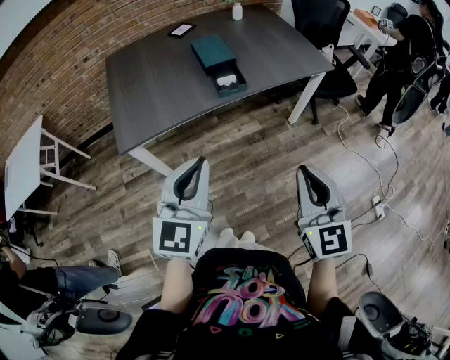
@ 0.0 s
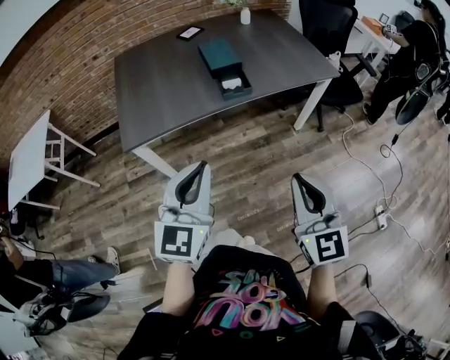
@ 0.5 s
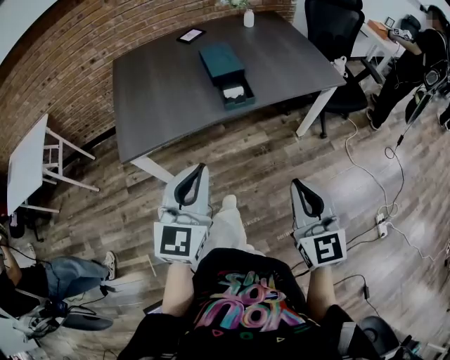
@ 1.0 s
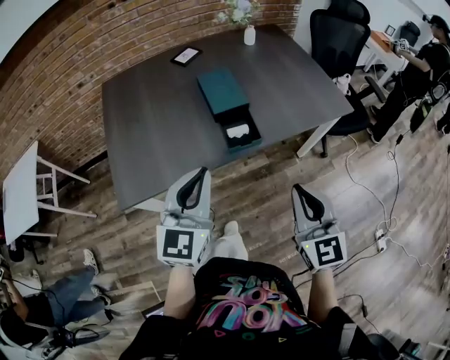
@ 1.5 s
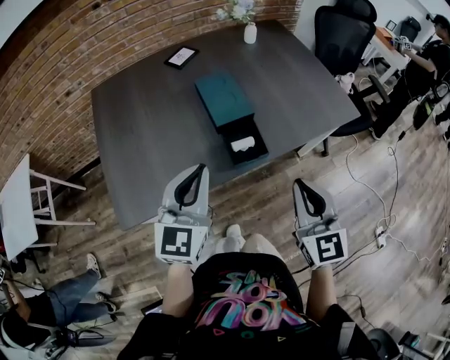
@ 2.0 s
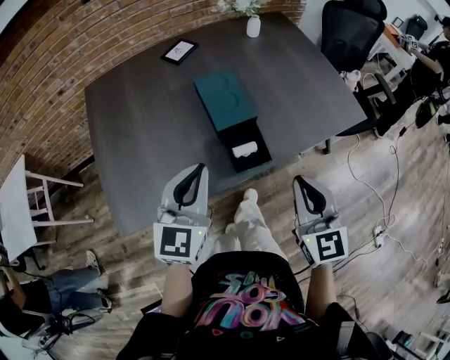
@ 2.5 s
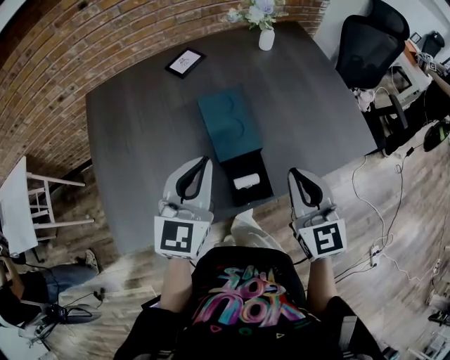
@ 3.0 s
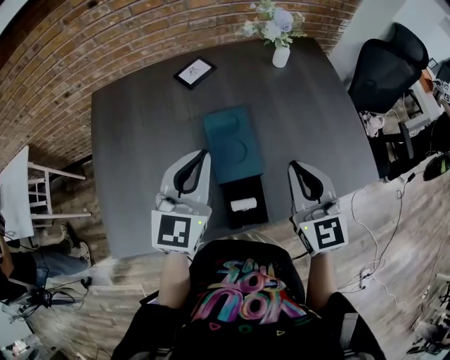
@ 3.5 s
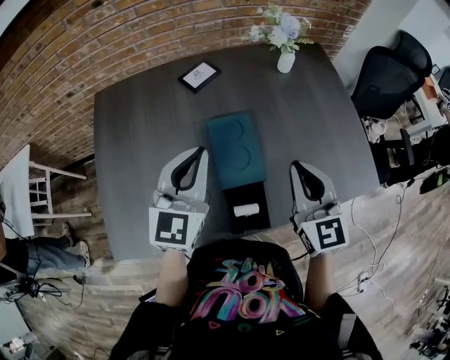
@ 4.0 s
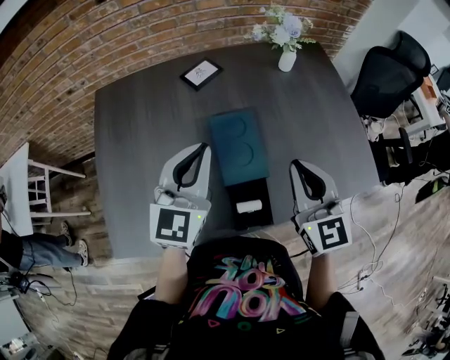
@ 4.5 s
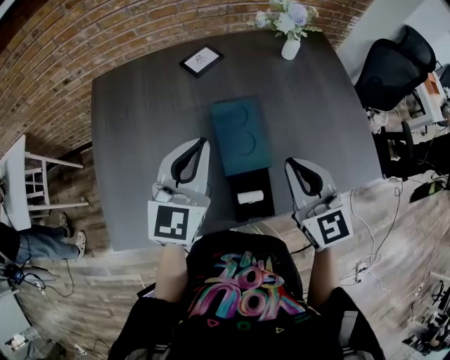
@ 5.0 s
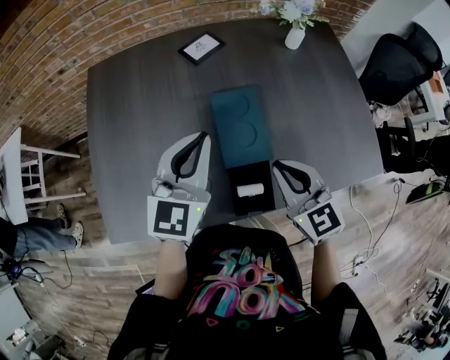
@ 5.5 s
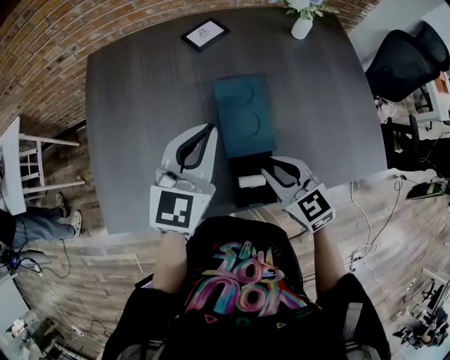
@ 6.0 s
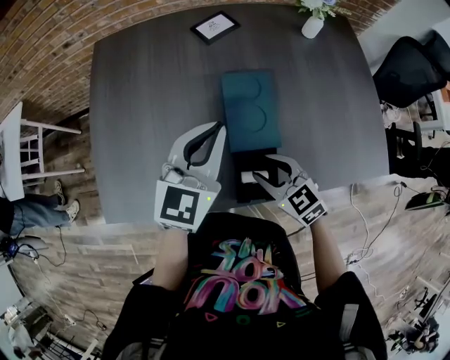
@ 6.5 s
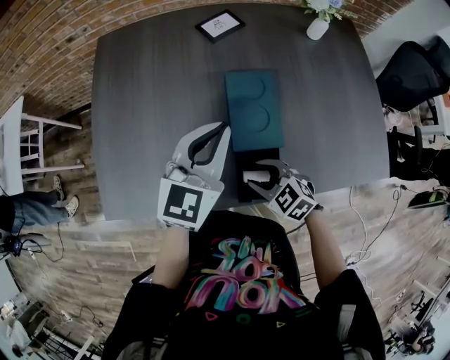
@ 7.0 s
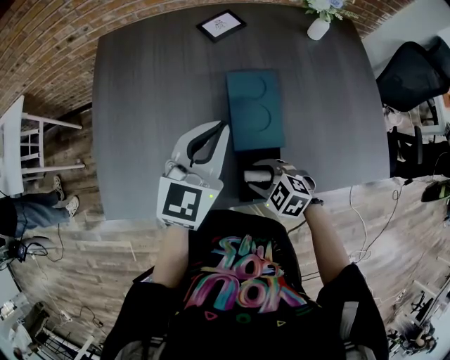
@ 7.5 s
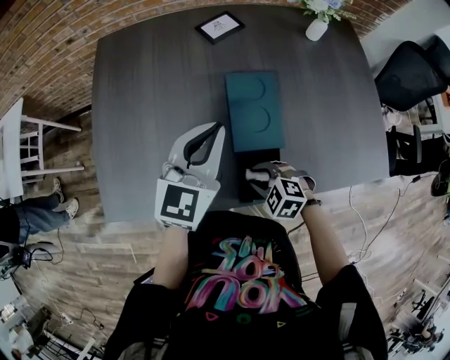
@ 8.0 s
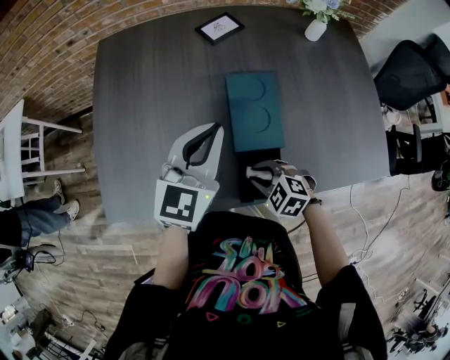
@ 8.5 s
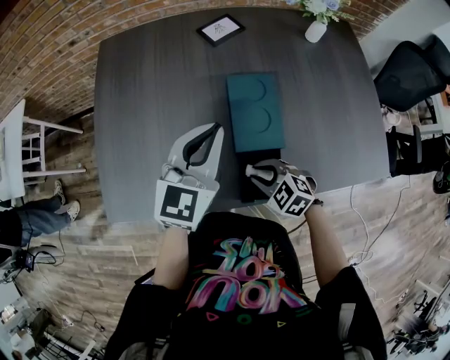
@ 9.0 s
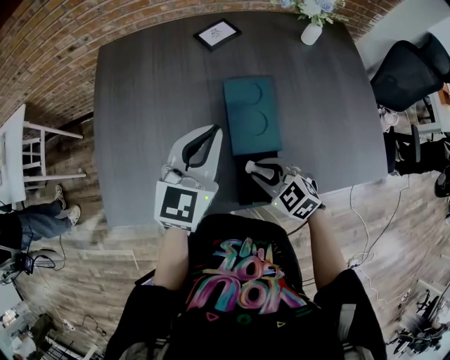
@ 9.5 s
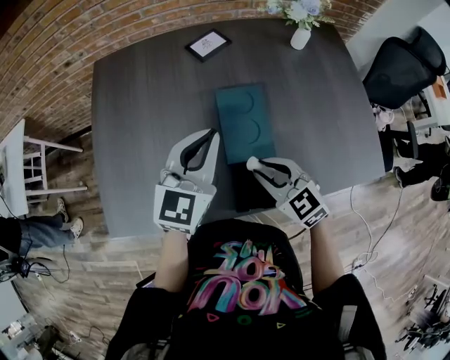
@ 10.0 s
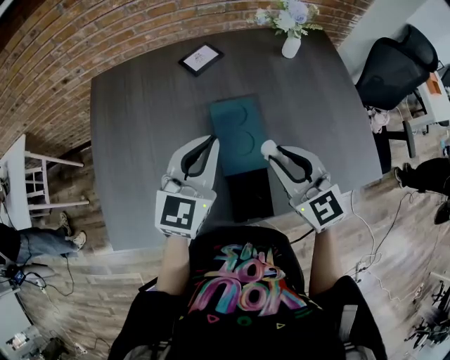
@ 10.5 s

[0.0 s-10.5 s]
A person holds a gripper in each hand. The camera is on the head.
0.0 to 2.0 s: The grippers both shift forward by some 30 cm.
2.0 to 4.0 s: The grippers both shift forward by roughly 25 cm.
4.0 to 6.5 s: The right gripper travels downward and to the left by about 20 cm, turns by approximately 40 degrees, and opens its fingers. The left gripper heads downward, covering some 5 cm.
6.5 to 8.5 s: The right gripper goes roughly 10 cm downward, and turns by roughly 30 degrees.
8.5 to 10.5 s: The right gripper is displaced upward and to the right by roughly 25 cm, and angles its fingers upward, by about 40 degrees.

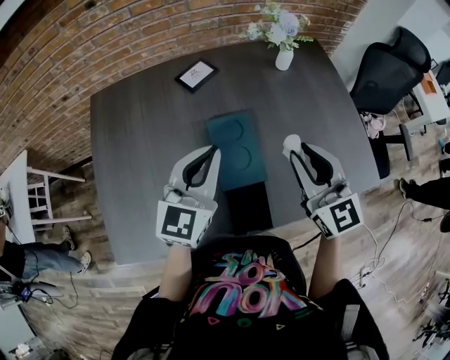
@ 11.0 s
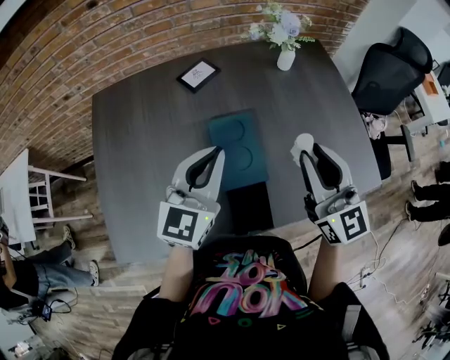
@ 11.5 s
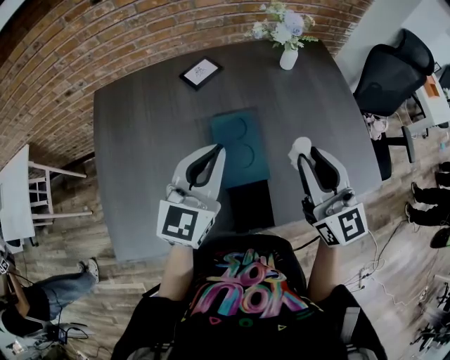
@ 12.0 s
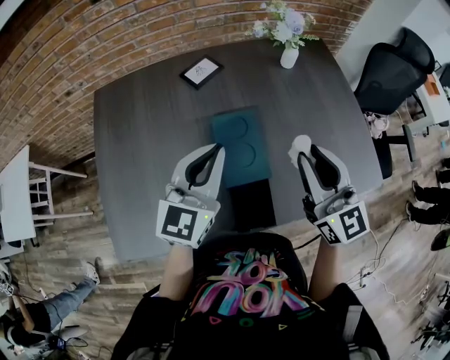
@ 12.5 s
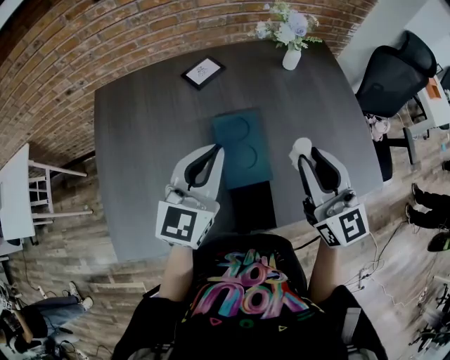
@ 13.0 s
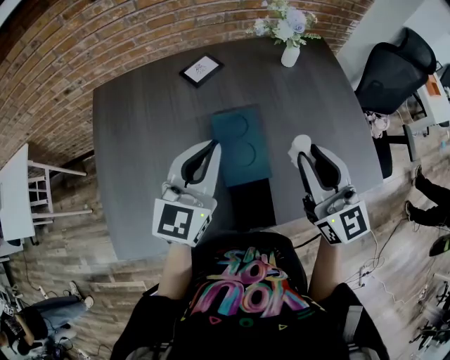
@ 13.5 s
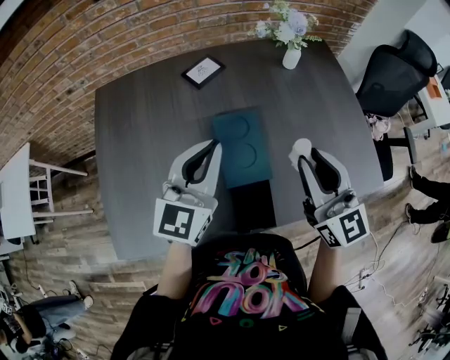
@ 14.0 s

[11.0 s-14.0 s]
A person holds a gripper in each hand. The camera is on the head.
11.0 to 12.5 s: The grippers make only small movements.
12.5 to 14.0 s: The two grippers keep their place.

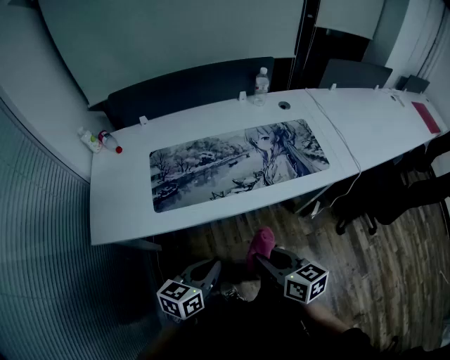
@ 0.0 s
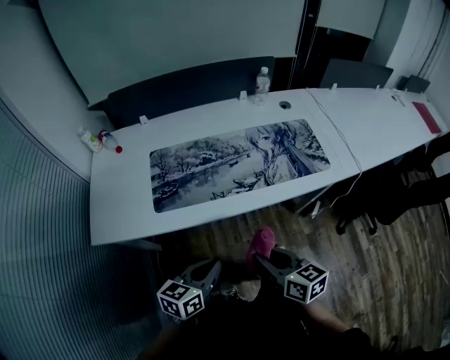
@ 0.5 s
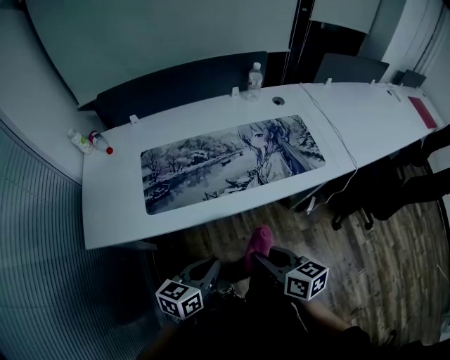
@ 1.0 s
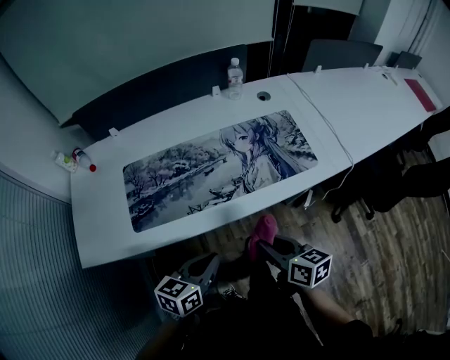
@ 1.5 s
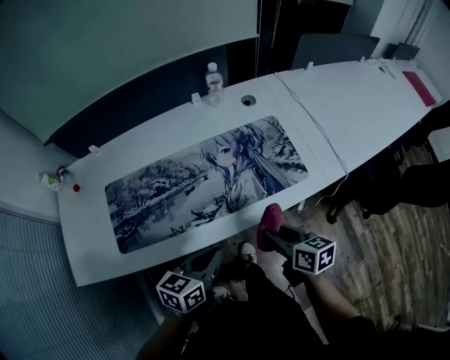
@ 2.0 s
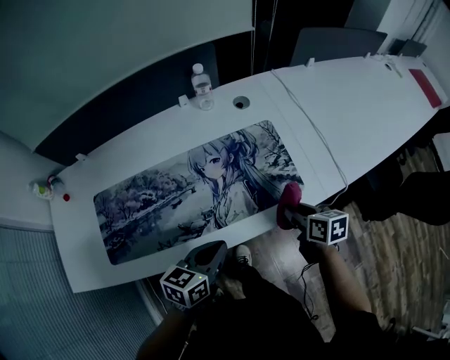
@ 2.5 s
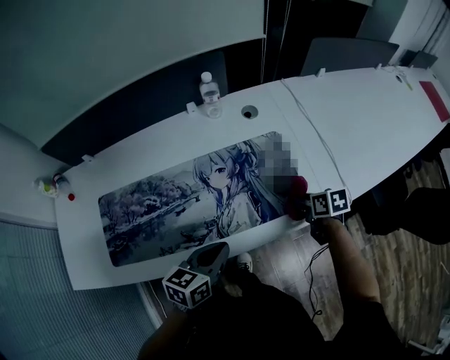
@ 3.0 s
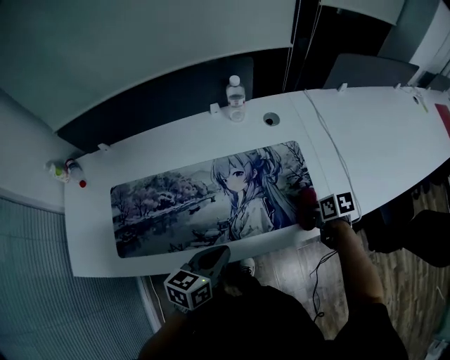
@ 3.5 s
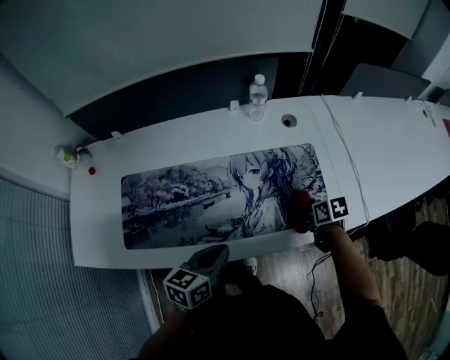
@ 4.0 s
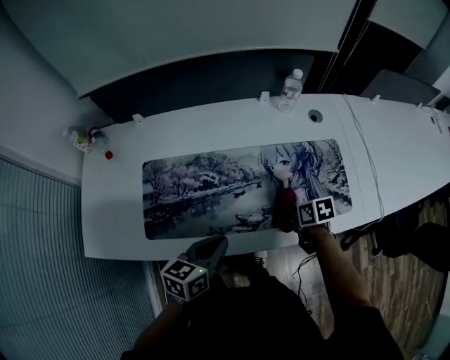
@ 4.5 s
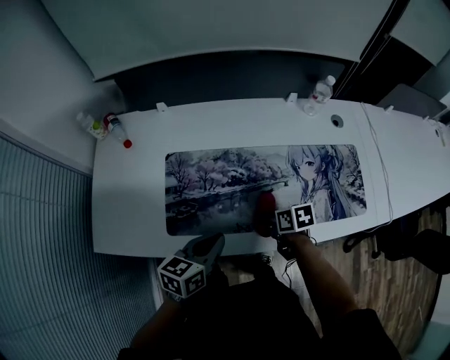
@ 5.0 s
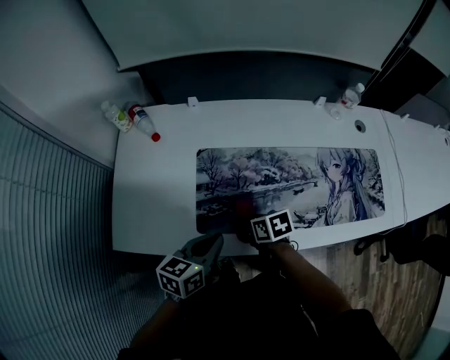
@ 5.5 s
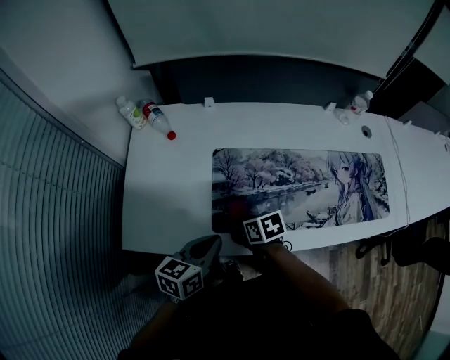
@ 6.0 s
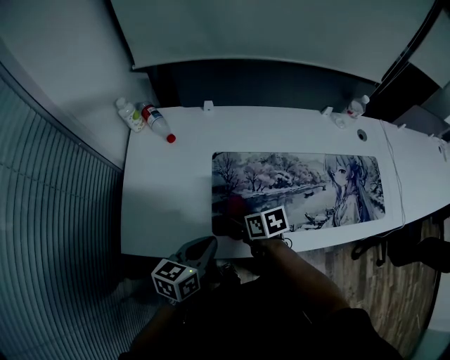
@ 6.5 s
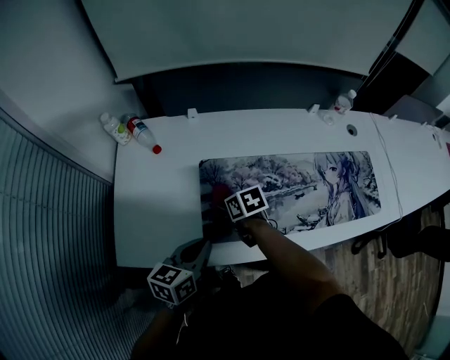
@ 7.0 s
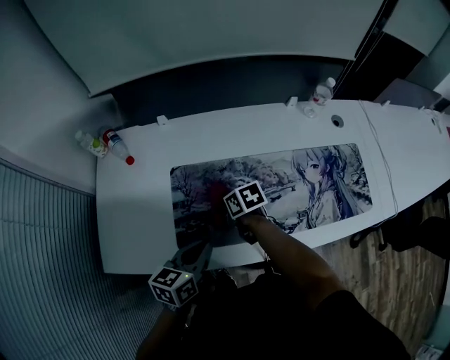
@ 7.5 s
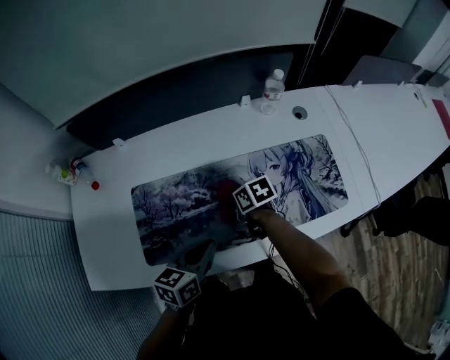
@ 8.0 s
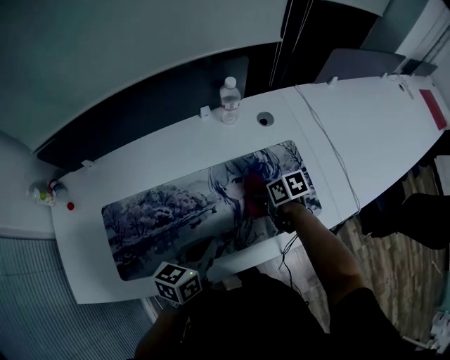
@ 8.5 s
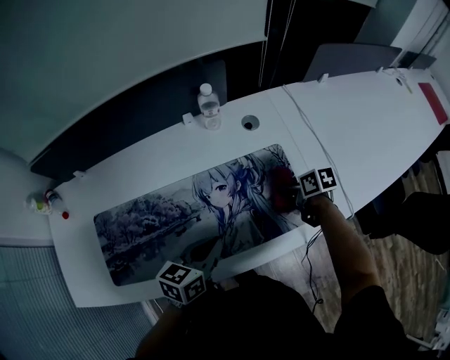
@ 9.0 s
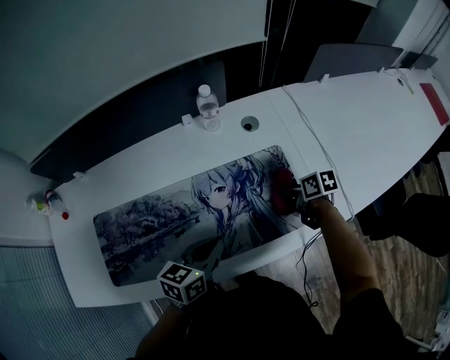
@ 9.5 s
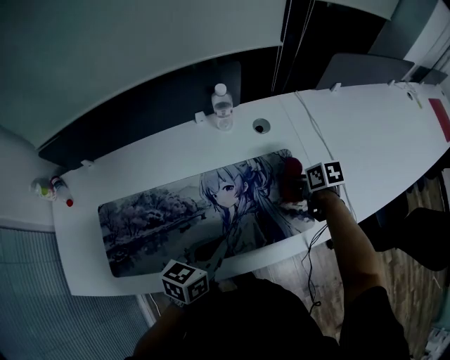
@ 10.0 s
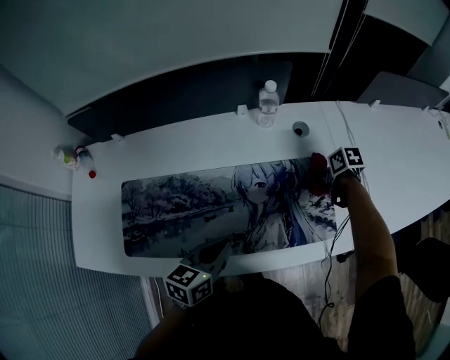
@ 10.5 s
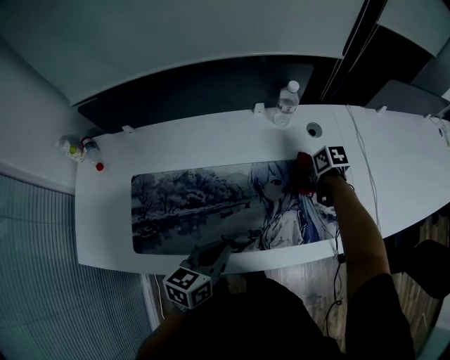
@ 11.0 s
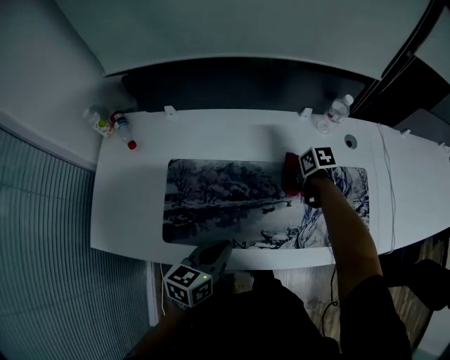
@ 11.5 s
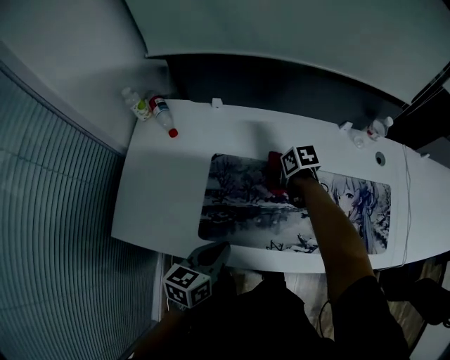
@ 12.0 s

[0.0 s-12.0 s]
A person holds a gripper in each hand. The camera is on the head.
0.0 to 2.0 s: Both grippers move forward and to the right, roughly 25 cm.
2.0 to 4.0 s: The left gripper travels forward by about 10 cm, while the right gripper goes some 20 cm forward, downward and to the right, and turns by some 30 degrees.
4.0 to 6.0 s: The right gripper shifts roughly 60 cm to the left, and changes its angle by approximately 20 degrees. The left gripper travels to the left by some 35 cm.
6.0 to 8.0 s: Both grippers move to the right, roughly 25 cm.
8.0 to 10.0 s: The left gripper travels to the right by some 20 cm. Meanwhile the right gripper heads to the right, covering some 40 cm.
10.0 to 12.0 s: The right gripper changes place by about 50 cm, and rotates some 30 degrees; the left gripper changes place by about 40 cm, and turns by about 20 degrees.

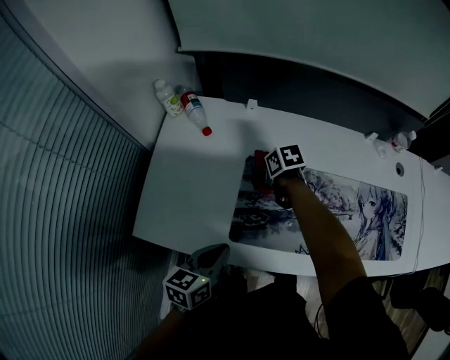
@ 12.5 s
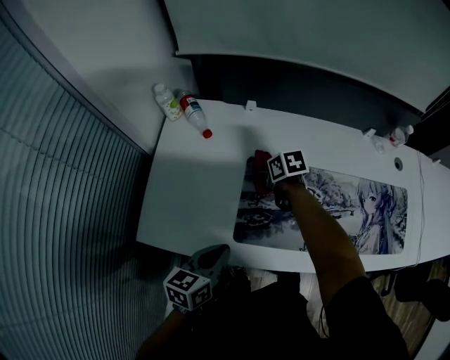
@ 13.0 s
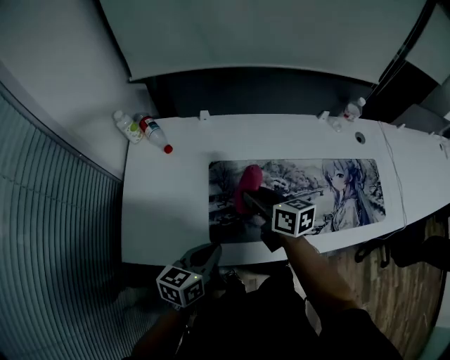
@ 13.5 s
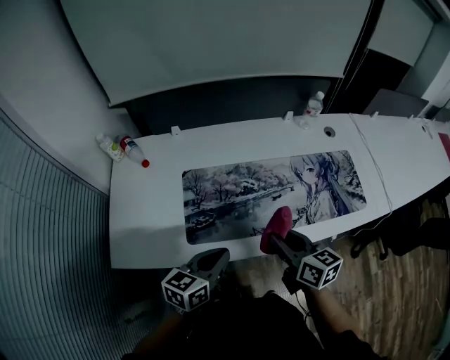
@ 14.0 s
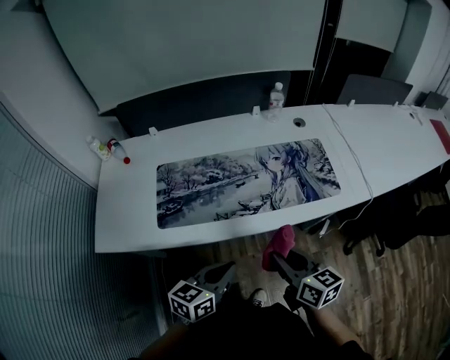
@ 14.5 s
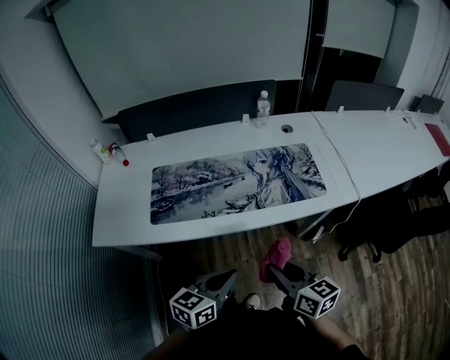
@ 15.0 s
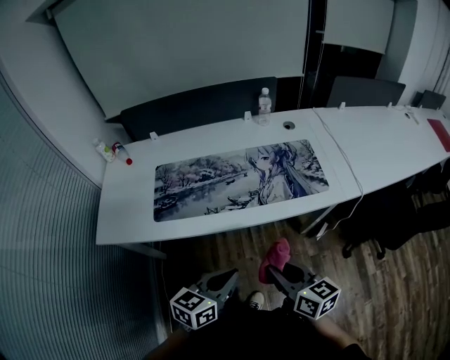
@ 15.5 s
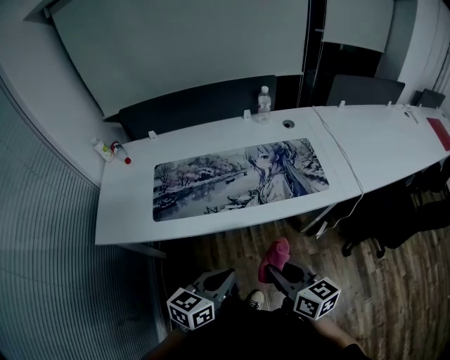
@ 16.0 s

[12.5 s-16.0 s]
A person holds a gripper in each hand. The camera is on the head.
12.5 to 14.5 s: The right gripper changes place by approximately 60 cm, and tilts its fingers approximately 40 degrees upward. The left gripper moves about 35 cm, and turns by roughly 30 degrees.
14.5 to 16.0 s: The right gripper heads backward, covering about 10 cm. Meanwhile the left gripper heads backward and to the right, covering some 10 cm.
